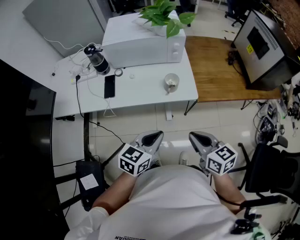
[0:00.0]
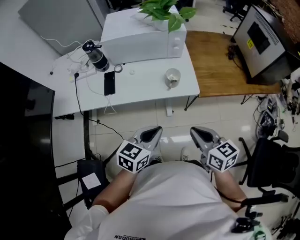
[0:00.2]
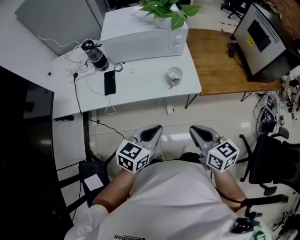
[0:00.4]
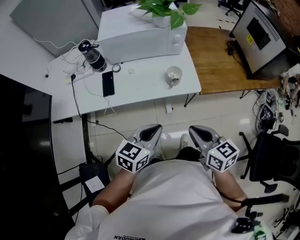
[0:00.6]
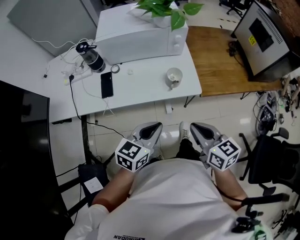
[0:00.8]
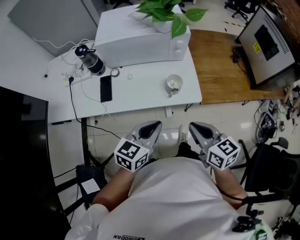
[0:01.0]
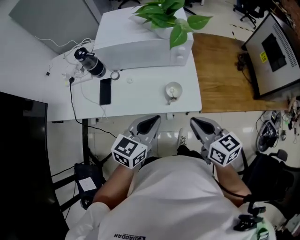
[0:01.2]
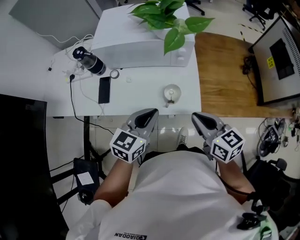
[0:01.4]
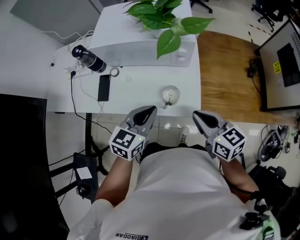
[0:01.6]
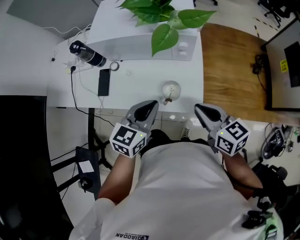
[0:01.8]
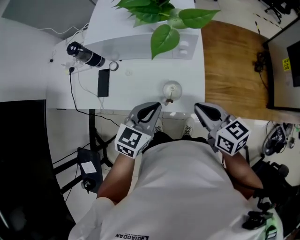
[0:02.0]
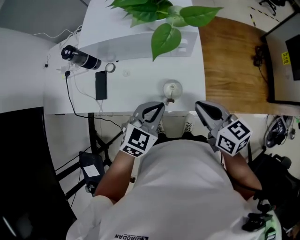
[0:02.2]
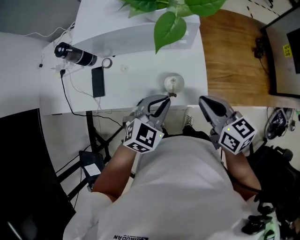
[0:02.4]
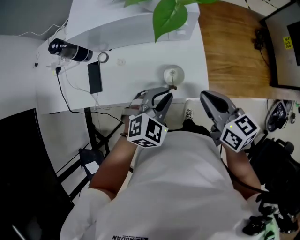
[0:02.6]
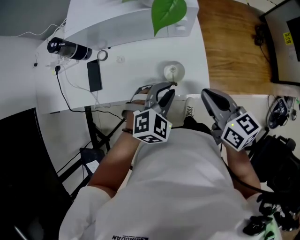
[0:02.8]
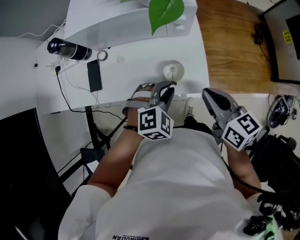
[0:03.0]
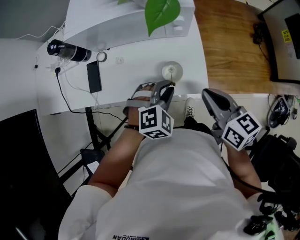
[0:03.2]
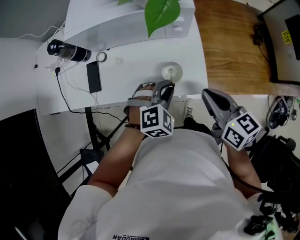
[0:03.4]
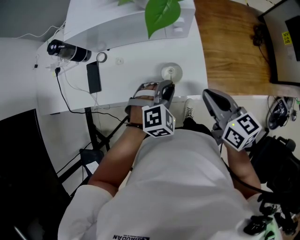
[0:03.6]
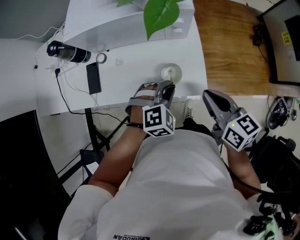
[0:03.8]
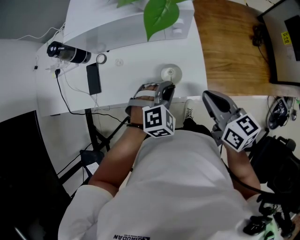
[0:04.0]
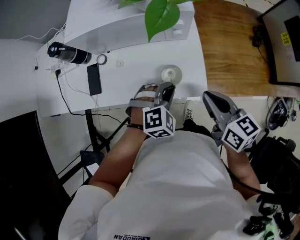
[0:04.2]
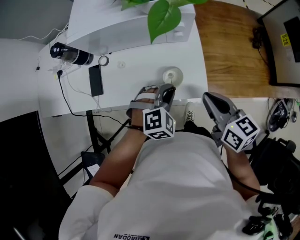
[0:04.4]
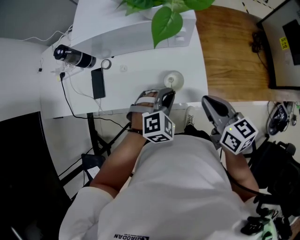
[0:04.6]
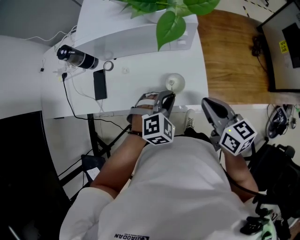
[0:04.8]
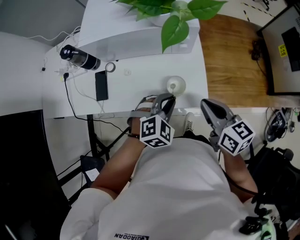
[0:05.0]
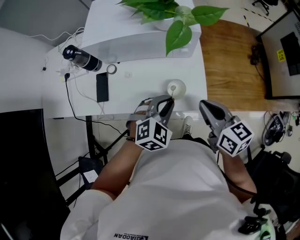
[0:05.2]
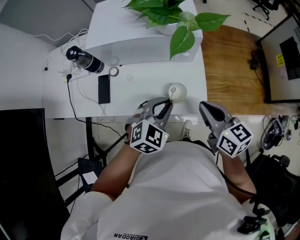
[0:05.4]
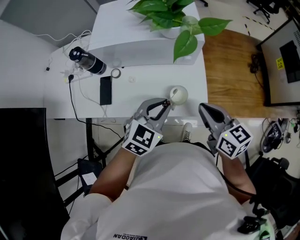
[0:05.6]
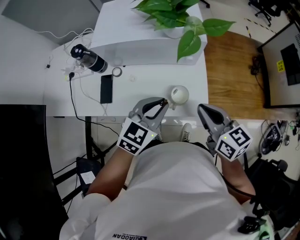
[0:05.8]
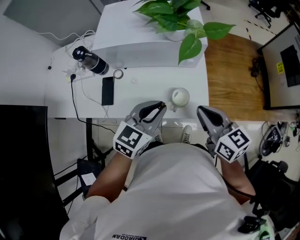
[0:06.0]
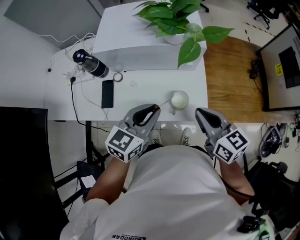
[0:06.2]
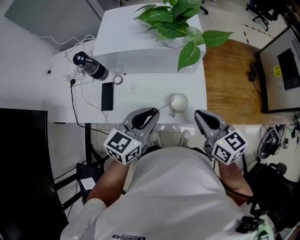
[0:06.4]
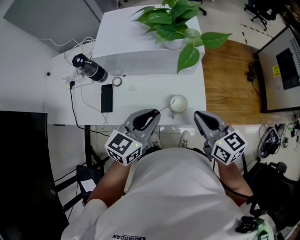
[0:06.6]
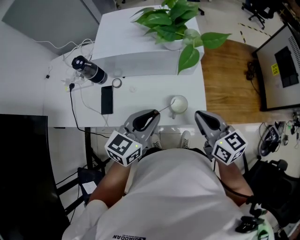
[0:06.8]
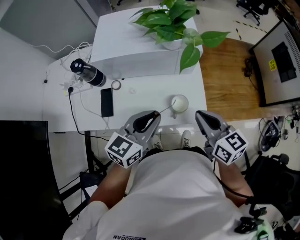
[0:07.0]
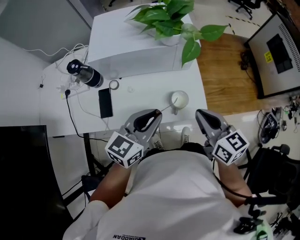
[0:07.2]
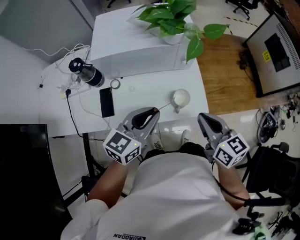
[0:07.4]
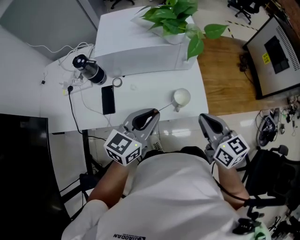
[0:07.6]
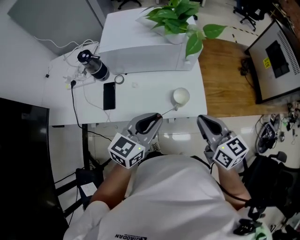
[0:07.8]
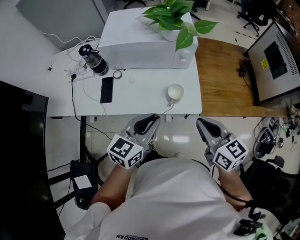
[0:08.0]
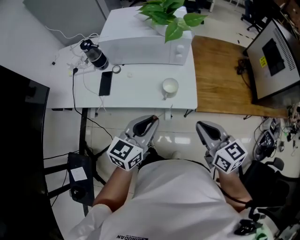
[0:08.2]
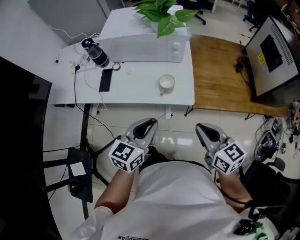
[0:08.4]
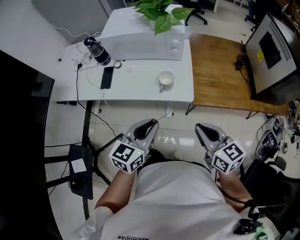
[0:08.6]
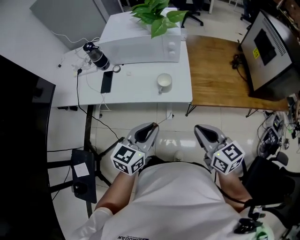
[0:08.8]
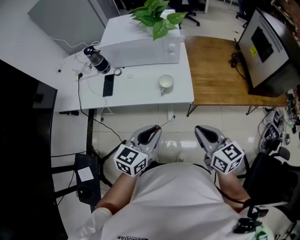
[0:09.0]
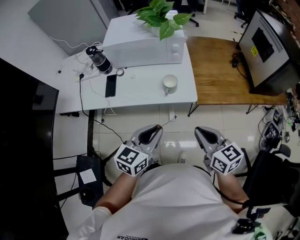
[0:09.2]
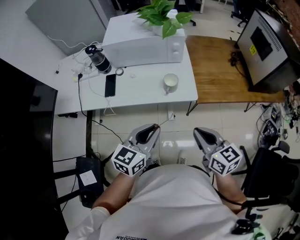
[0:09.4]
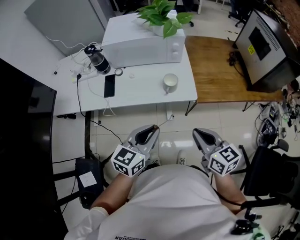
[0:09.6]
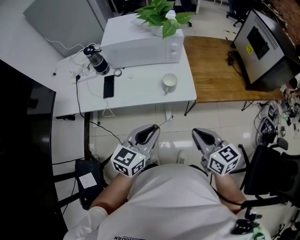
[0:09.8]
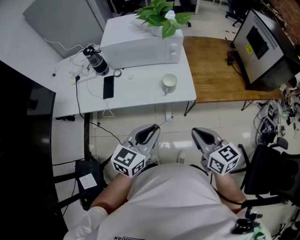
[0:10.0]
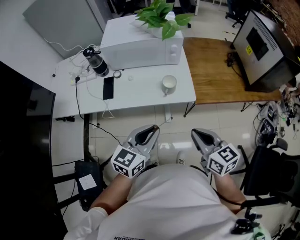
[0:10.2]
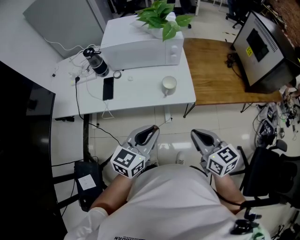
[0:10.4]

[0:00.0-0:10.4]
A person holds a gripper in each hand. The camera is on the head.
0:00.0 to 0:01.4: Both grippers travel together forward, approximately 20 cm.
0:01.4 to 0:03.0: The left gripper heads downward and to the right, covering approximately 15 cm, and twists roughly 50 degrees clockwise, seen from behind. The right gripper changes place by some 5 cm.
0:03.0 to 0:04.4: The grippers make only small movements.
0:04.4 to 0:06.0: The right gripper is displaced upward and to the left by about 5 cm. The left gripper shifts approximately 15 cm upward and to the left, and twists about 40 degrees counterclockwise, seen from behind.
0:06.0 to 0:07.4: The left gripper shifts roughly 5 cm to the left.
0:07.4 to 0:09.0: Both grippers move backward and to the right, roughly 20 cm.
0:09.0 to 0:10.4: The grippers both shift to the left by about 5 cm.

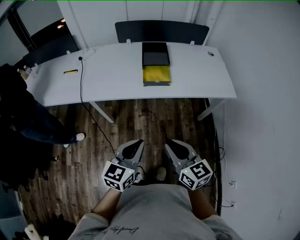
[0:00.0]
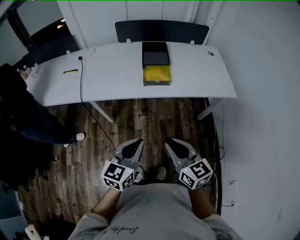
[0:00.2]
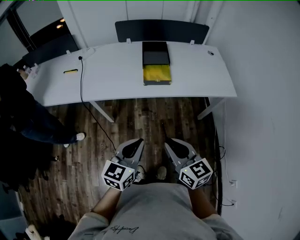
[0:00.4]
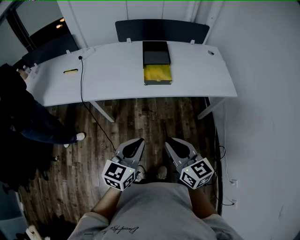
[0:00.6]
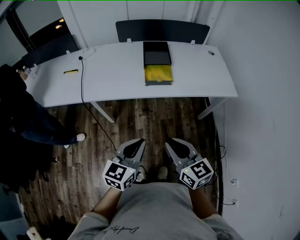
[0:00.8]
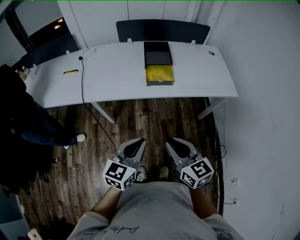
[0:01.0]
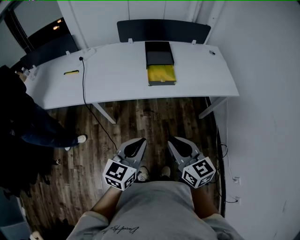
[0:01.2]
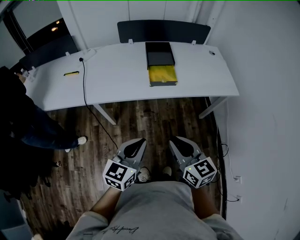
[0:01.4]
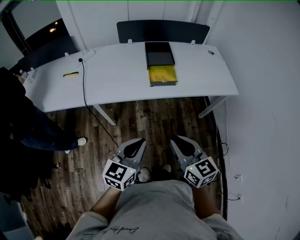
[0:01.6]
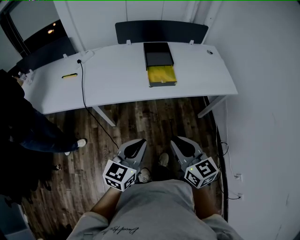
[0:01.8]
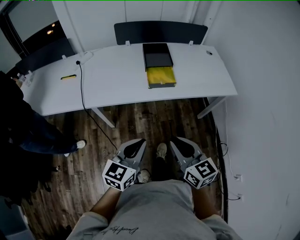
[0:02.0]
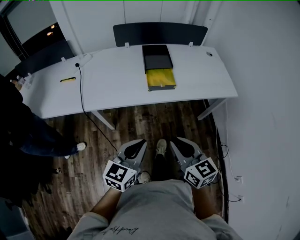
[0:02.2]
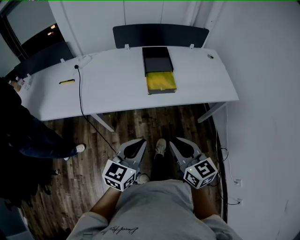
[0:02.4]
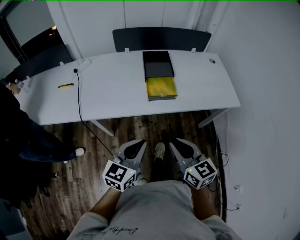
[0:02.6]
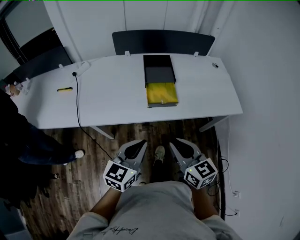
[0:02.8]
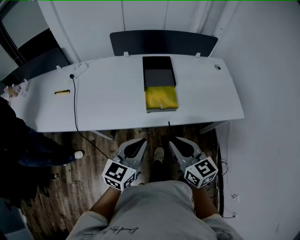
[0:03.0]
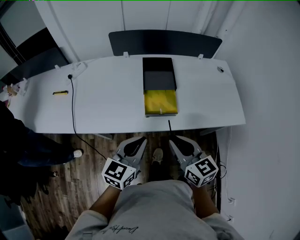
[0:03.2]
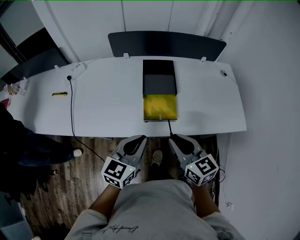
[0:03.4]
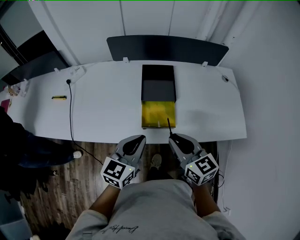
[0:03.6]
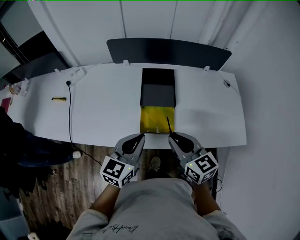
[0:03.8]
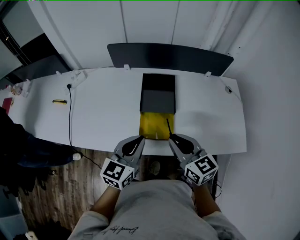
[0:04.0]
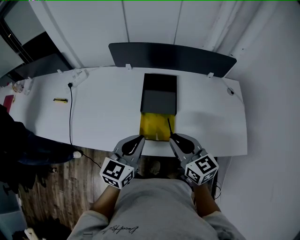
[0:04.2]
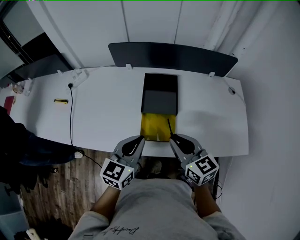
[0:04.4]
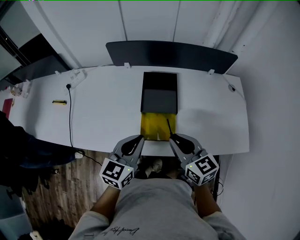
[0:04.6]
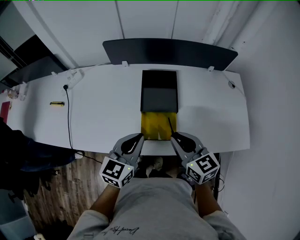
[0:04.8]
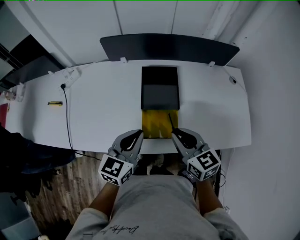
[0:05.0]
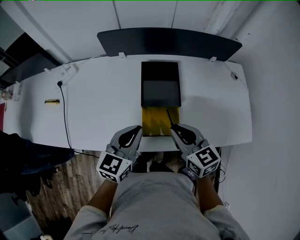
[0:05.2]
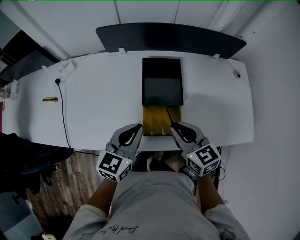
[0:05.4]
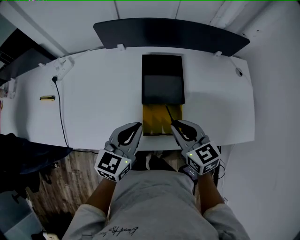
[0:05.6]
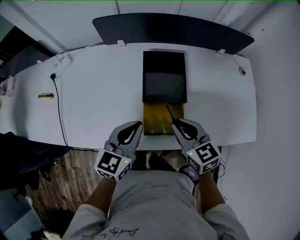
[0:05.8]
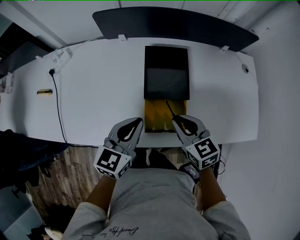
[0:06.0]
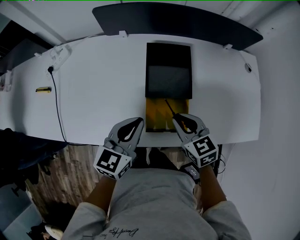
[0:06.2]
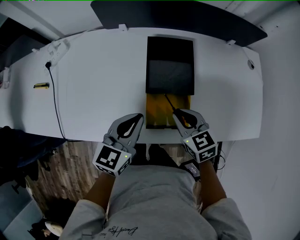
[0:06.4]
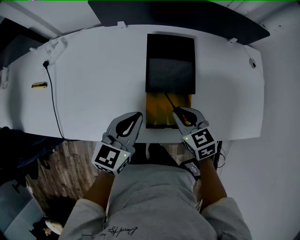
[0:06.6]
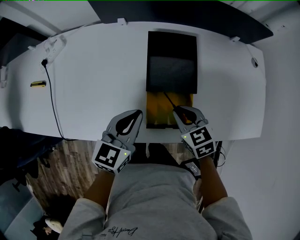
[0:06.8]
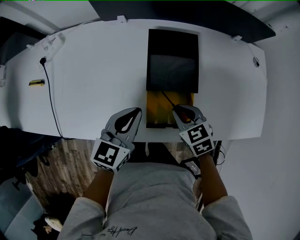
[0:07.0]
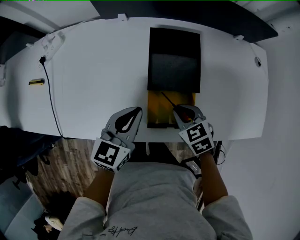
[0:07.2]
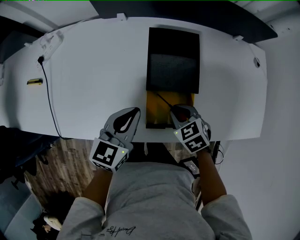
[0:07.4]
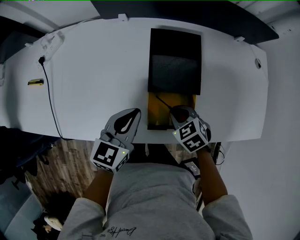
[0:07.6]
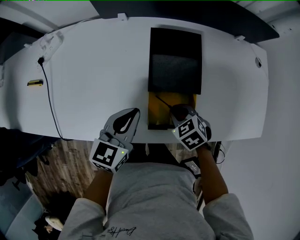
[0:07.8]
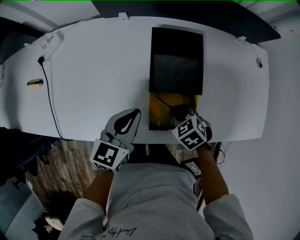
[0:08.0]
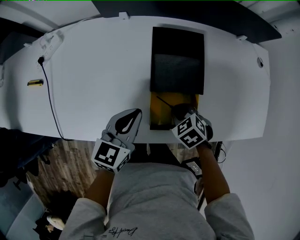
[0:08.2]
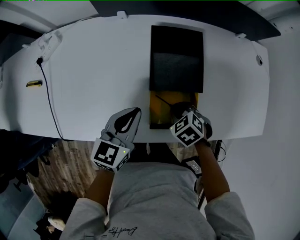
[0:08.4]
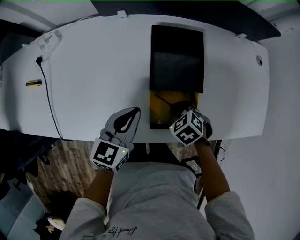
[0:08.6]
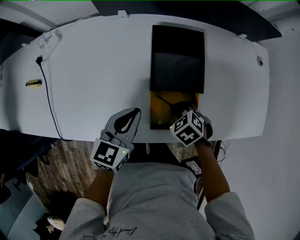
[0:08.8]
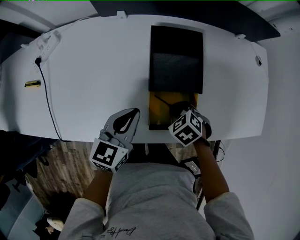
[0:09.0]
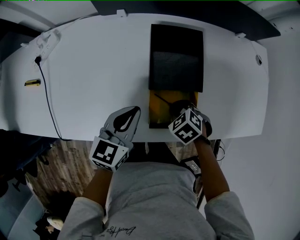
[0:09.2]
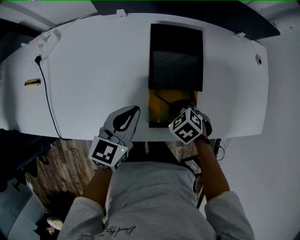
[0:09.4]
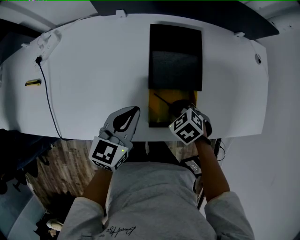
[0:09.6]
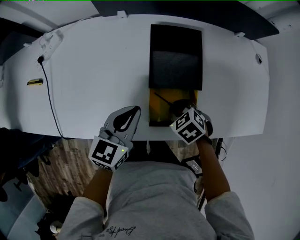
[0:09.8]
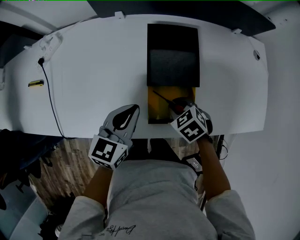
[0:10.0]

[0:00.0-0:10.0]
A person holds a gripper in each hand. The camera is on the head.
0:00.0 to 0:01.4: Both grippers move to the left, about 5 cm.
0:01.4 to 0:02.8: Both grippers travel together forward, about 15 cm.
0:02.8 to 0:04.2: Both grippers move forward, roughly 25 cm.
0:04.2 to 0:05.8: The right gripper moves downward and forward, about 10 cm. The left gripper heads forward and downward, covering about 10 cm.
0:05.8 to 0:07.2: The right gripper is displaced downward by about 15 cm, and rotates roughly 20 degrees. Meanwhile the left gripper moves downward, about 5 cm.
0:07.2 to 0:08.6: The right gripper is displaced downward by roughly 5 cm, and turns by about 20 degrees.
0:08.6 to 0:10.0: The grippers make only small movements.

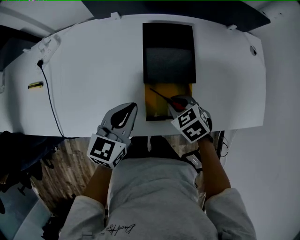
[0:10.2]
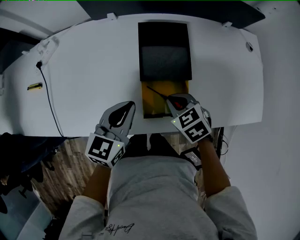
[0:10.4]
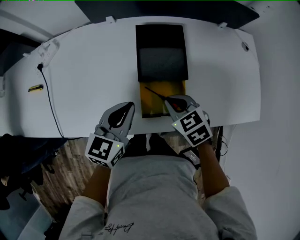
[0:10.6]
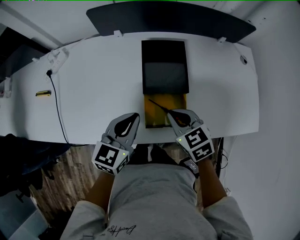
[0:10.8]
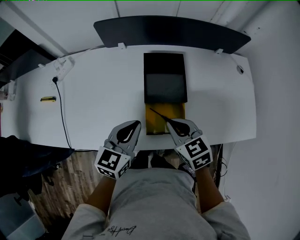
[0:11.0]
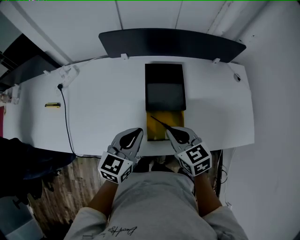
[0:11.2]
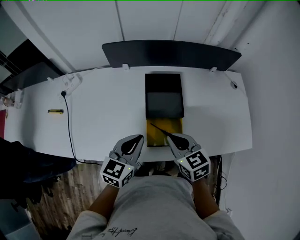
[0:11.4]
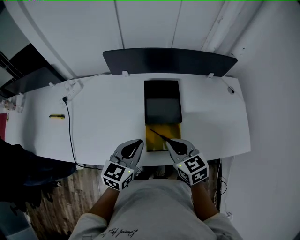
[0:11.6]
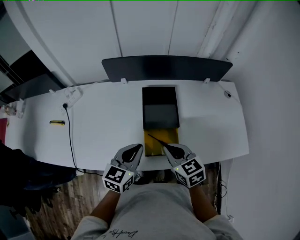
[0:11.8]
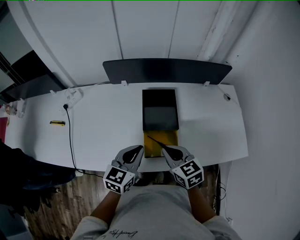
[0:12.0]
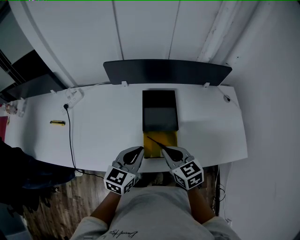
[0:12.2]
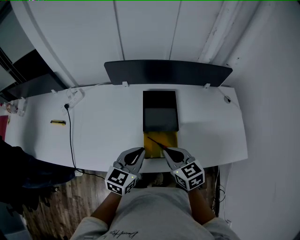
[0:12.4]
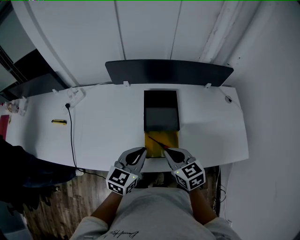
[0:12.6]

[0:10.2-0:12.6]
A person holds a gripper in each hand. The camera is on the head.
0:10.2 to 0:11.4: The right gripper heads upward, covering some 15 cm, and turns by some 30 degrees. Meanwhile the left gripper travels upward by some 10 cm.
0:11.4 to 0:12.6: The grippers make only small movements.

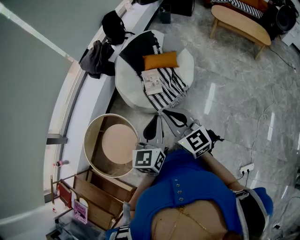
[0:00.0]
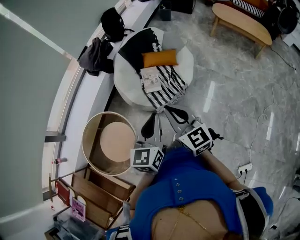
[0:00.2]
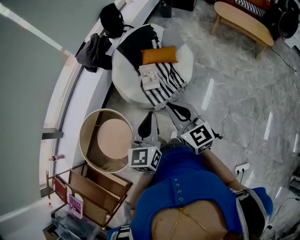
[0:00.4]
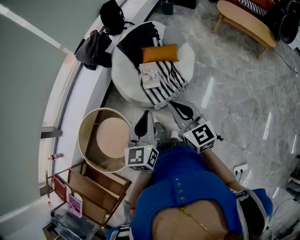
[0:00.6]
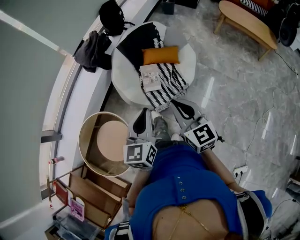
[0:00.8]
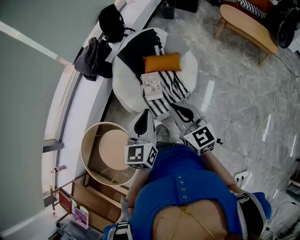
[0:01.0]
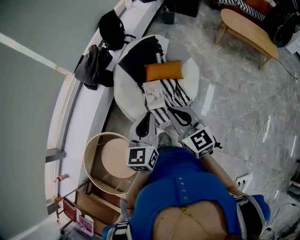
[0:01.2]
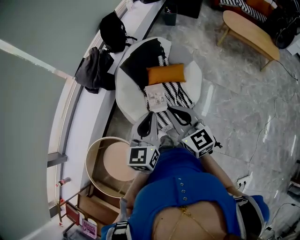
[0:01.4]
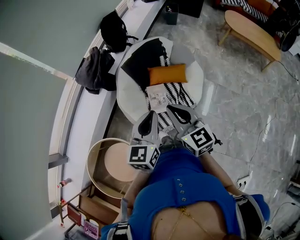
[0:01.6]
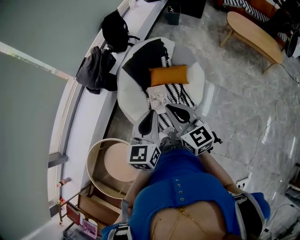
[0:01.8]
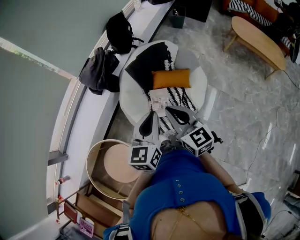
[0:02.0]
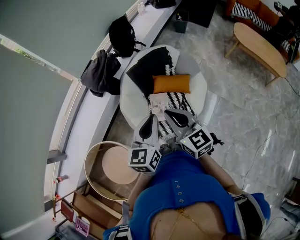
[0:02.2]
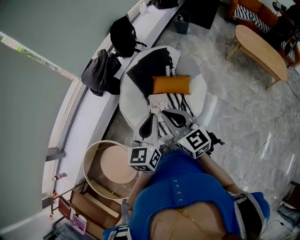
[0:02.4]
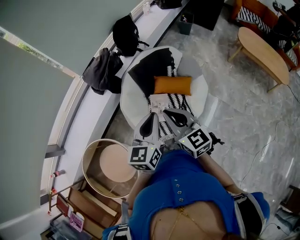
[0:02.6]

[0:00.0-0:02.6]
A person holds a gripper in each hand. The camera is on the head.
0:00.0 to 0:01.2: The grippers both shift forward by about 25 cm.
0:01.2 to 0:02.6: Both grippers move forward, some 10 cm.
